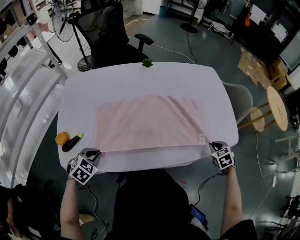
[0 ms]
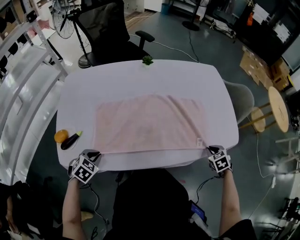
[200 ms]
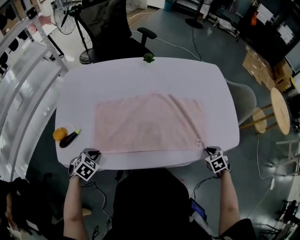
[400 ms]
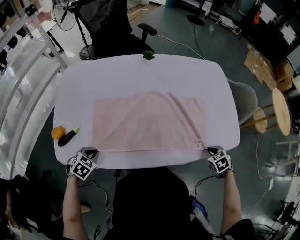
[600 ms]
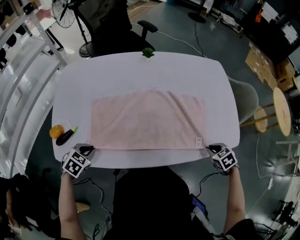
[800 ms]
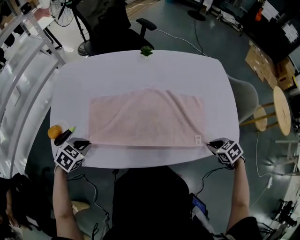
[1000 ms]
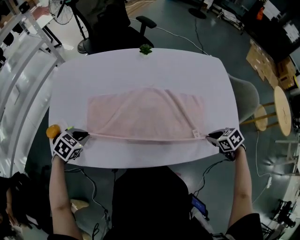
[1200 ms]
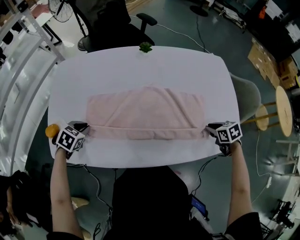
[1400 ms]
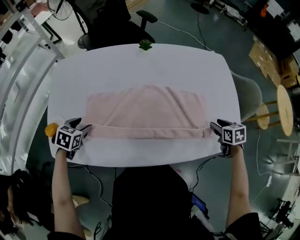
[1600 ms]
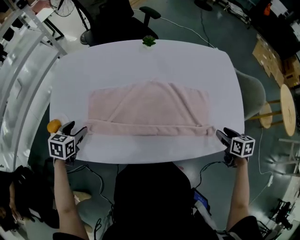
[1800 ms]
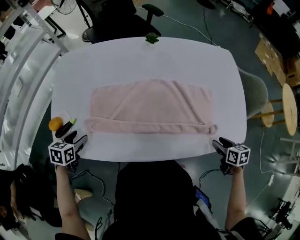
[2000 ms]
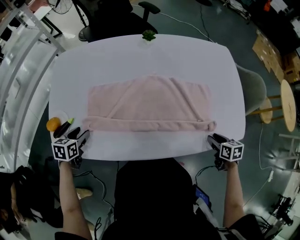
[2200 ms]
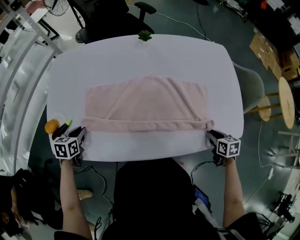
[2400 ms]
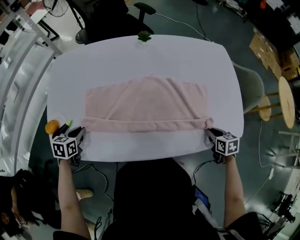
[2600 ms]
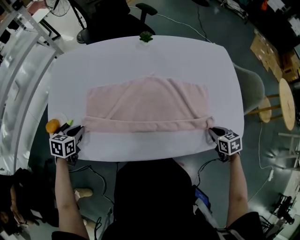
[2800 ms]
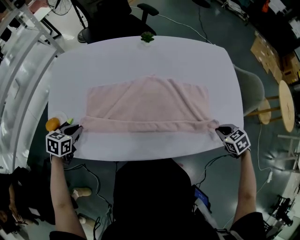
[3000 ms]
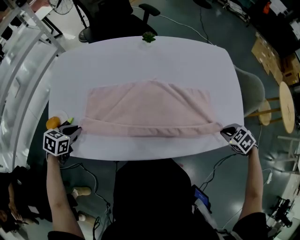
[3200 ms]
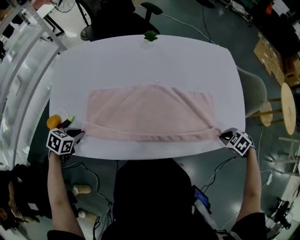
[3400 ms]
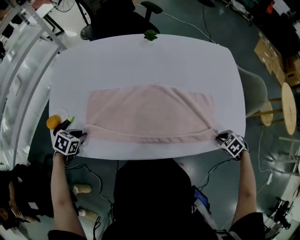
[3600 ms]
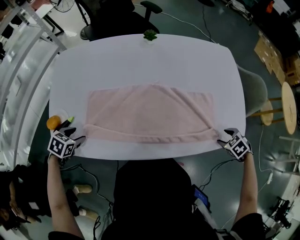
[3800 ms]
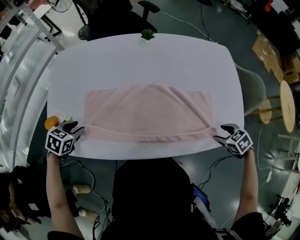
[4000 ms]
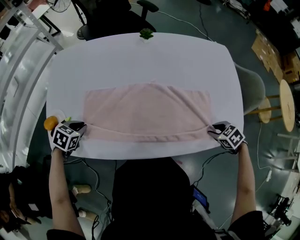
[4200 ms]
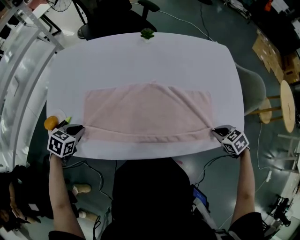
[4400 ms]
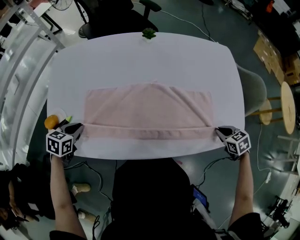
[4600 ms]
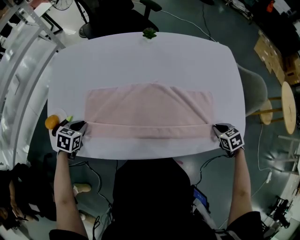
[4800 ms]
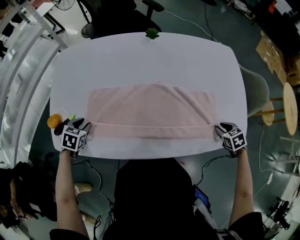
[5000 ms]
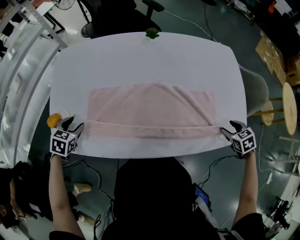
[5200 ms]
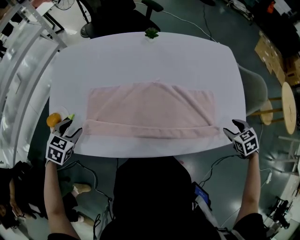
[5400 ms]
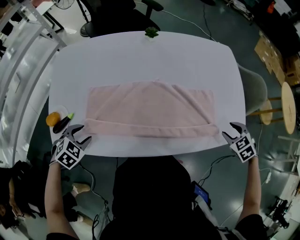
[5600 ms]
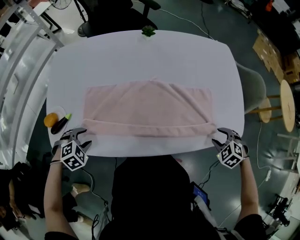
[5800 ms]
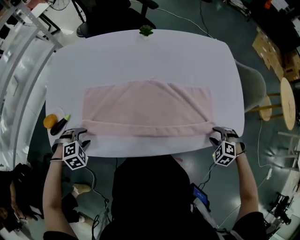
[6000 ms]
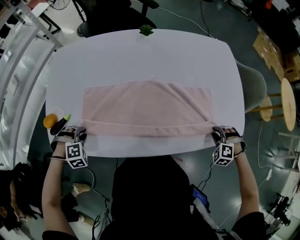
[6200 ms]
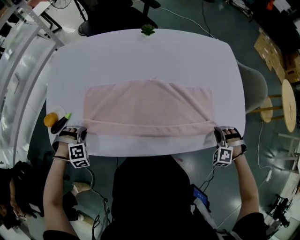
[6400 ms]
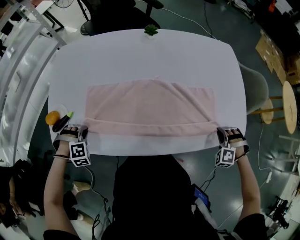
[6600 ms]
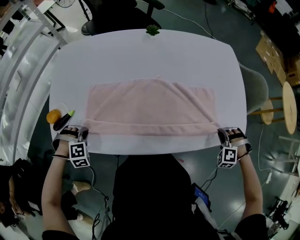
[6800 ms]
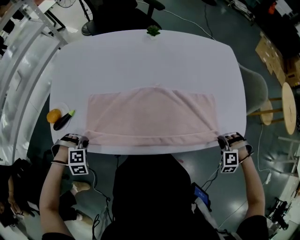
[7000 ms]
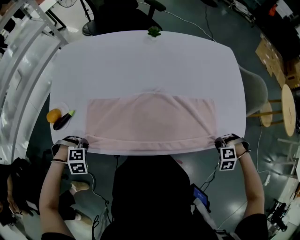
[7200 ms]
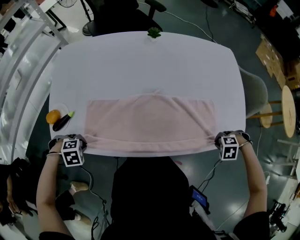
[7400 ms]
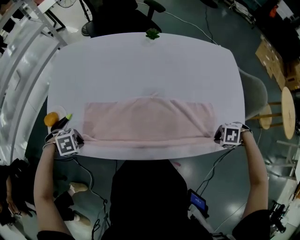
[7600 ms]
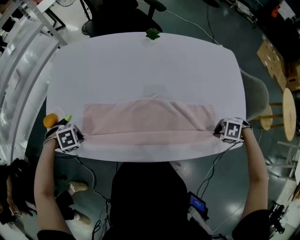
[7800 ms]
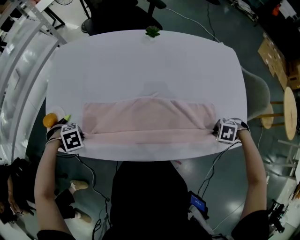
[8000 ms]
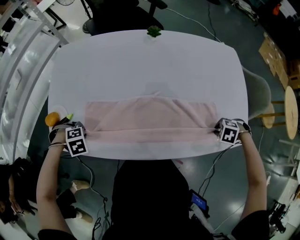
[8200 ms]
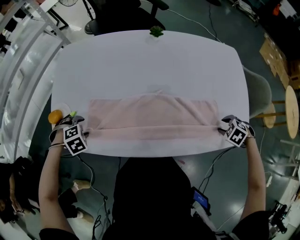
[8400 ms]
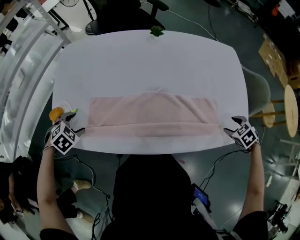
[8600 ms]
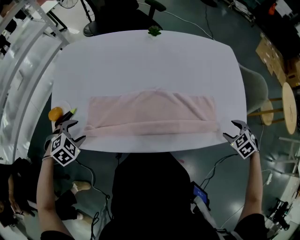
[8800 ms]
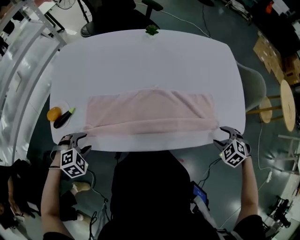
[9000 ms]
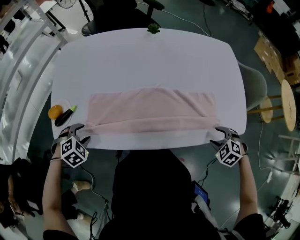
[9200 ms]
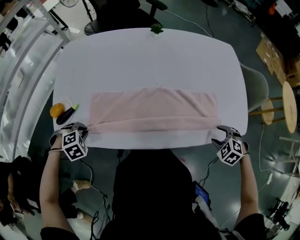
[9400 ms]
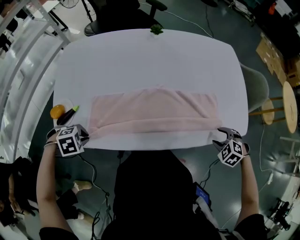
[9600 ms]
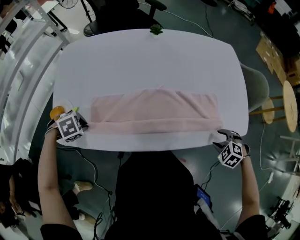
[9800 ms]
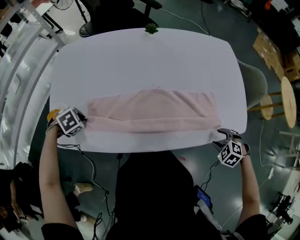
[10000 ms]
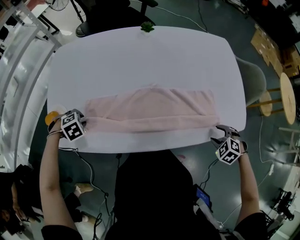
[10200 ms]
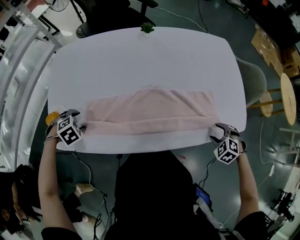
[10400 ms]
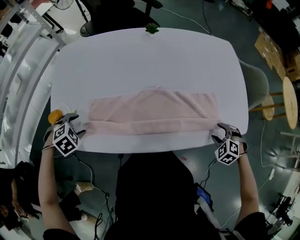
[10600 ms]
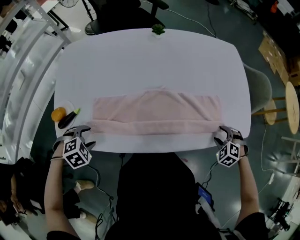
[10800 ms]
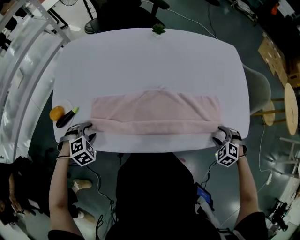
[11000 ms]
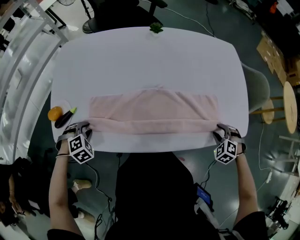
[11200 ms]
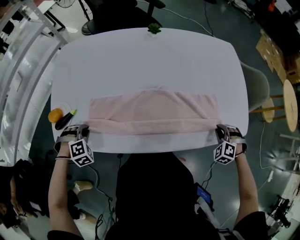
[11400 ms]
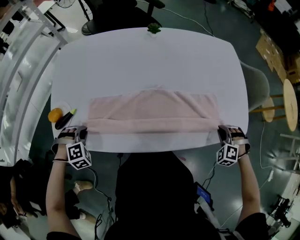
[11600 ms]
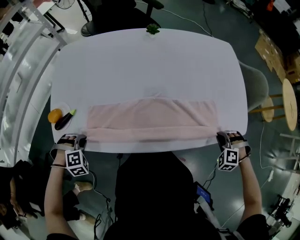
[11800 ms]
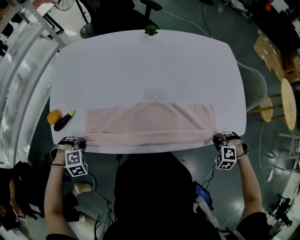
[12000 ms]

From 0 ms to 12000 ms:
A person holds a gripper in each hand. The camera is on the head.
From 0 ms to 1600 ms: The right gripper changes place by some 10 cm, and changes its angle by about 20 degrees; the left gripper changes place by some 10 cm, rotates some 30 degrees, and opens.
From 1600 ms to 3000 ms: The right gripper goes approximately 5 cm backward, and changes its angle by approximately 30 degrees. Meanwhile the left gripper closes up.
From 3000 ms to 4400 ms: The right gripper opens, then closes once more. The left gripper opens and closes again.
From 4400 ms to 6000 ms: The left gripper heads backward, covering roughly 5 cm, rotates around the line of its fingers by roughly 50 degrees, clockwise from behind, and opens up. The right gripper turns by roughly 40 degrees, and opens its fingers.
From 6000 ms to 7600 ms: The left gripper rotates about 30 degrees, and closes its fingers. The right gripper changes its angle by some 40 degrees, and closes.
From 7600 ms to 9000 ms: The left gripper turns by about 30 degrees, and opens its fingers, while the right gripper turns by approximately 40 degrees, and opens up.
From 9000 ms to 10400 ms: The left gripper ends up about 10 cm from where it was, and closes, then reopens.
From 10400 ms to 12000 ms: The right gripper turns by roughly 20 degrees, and closes; the left gripper changes place by approximately 10 cm, and closes up.

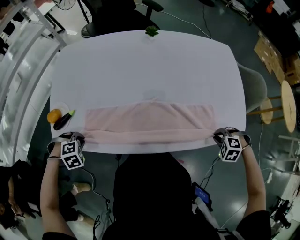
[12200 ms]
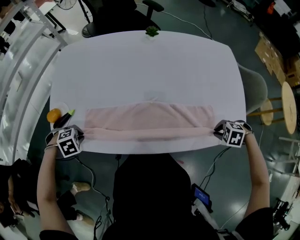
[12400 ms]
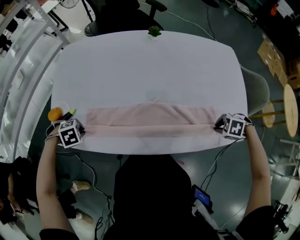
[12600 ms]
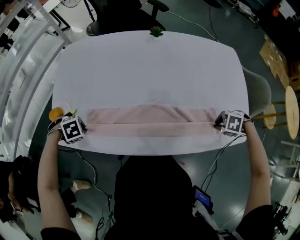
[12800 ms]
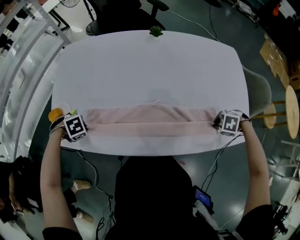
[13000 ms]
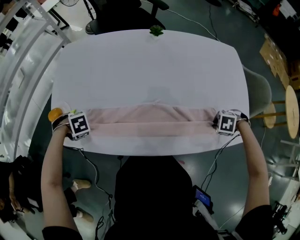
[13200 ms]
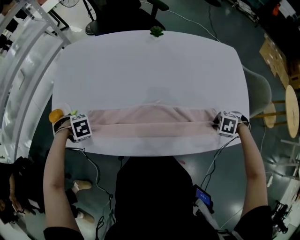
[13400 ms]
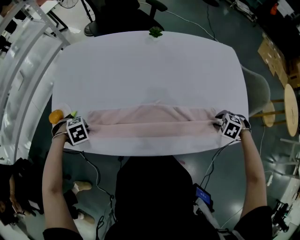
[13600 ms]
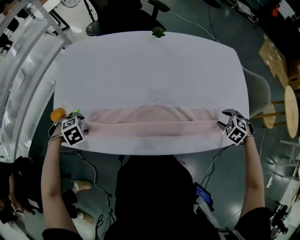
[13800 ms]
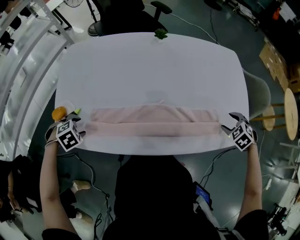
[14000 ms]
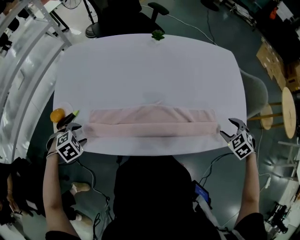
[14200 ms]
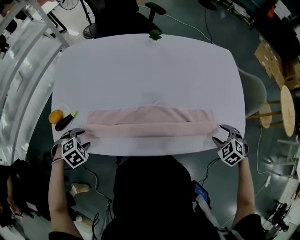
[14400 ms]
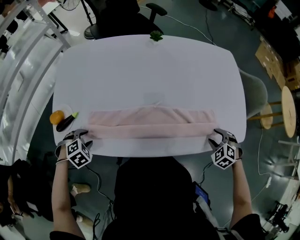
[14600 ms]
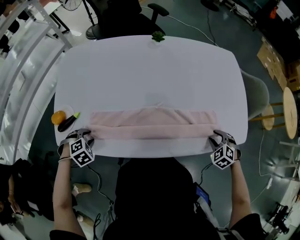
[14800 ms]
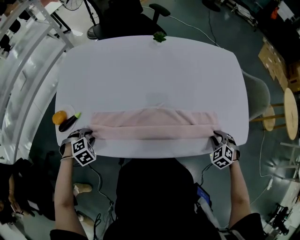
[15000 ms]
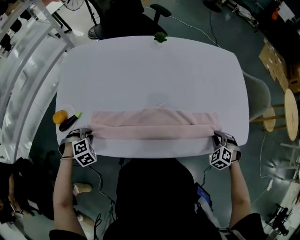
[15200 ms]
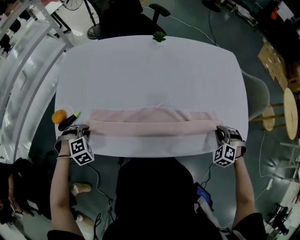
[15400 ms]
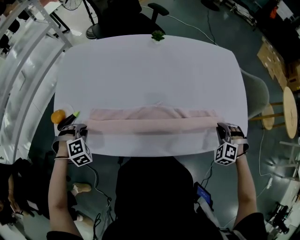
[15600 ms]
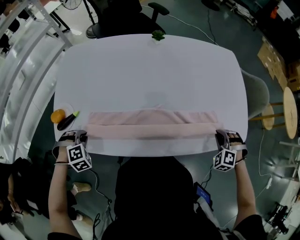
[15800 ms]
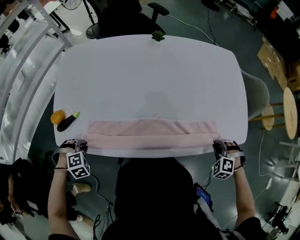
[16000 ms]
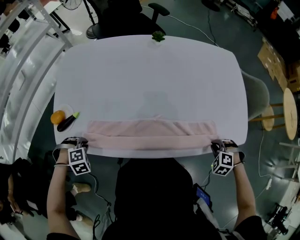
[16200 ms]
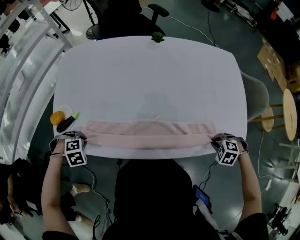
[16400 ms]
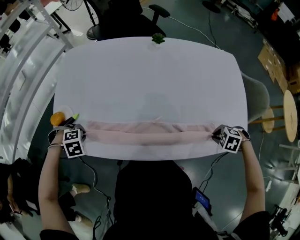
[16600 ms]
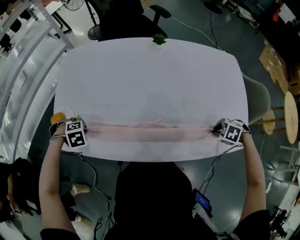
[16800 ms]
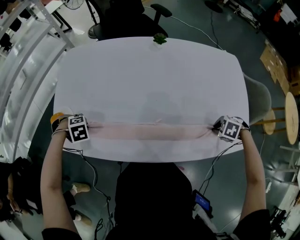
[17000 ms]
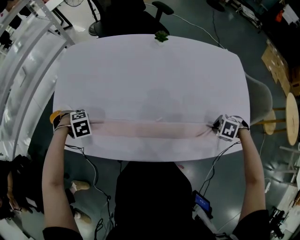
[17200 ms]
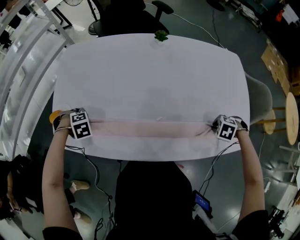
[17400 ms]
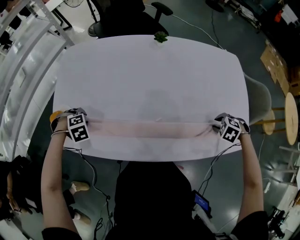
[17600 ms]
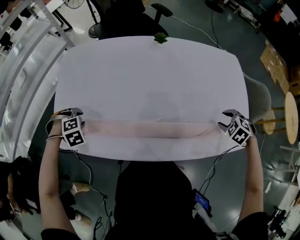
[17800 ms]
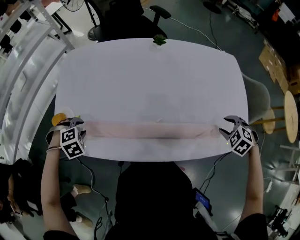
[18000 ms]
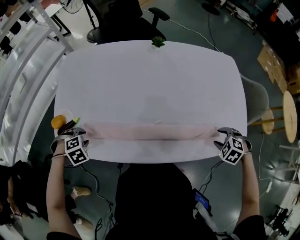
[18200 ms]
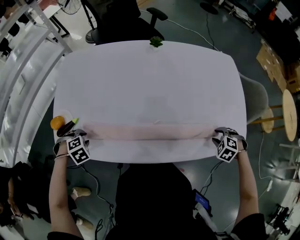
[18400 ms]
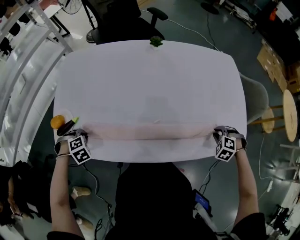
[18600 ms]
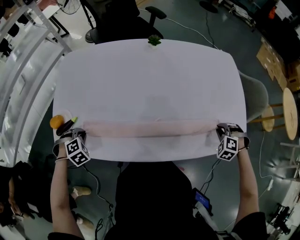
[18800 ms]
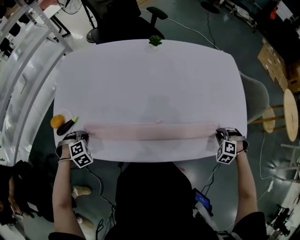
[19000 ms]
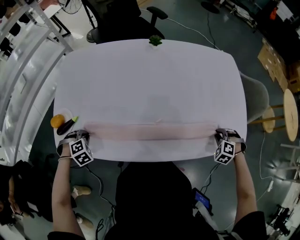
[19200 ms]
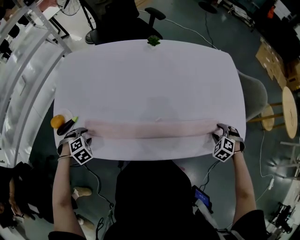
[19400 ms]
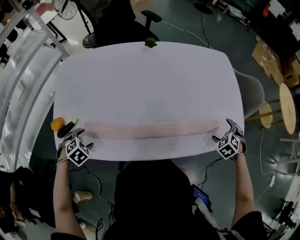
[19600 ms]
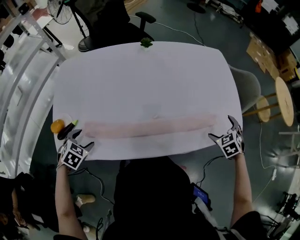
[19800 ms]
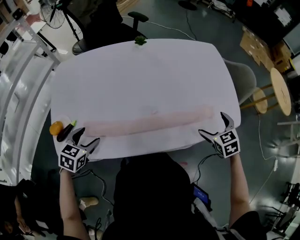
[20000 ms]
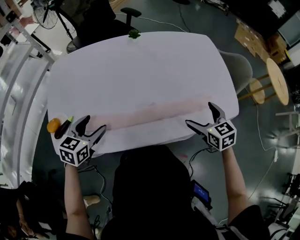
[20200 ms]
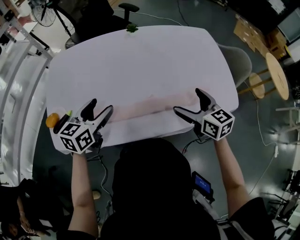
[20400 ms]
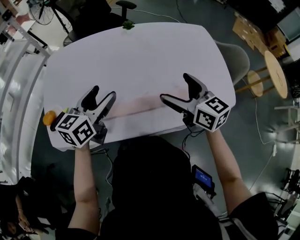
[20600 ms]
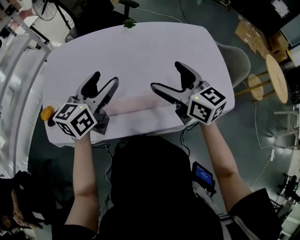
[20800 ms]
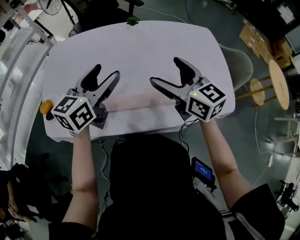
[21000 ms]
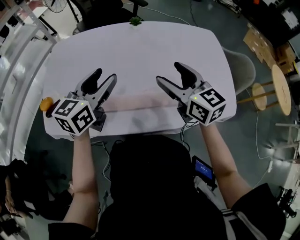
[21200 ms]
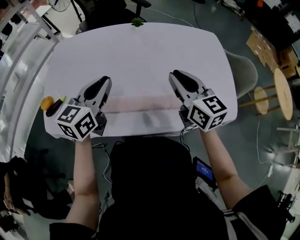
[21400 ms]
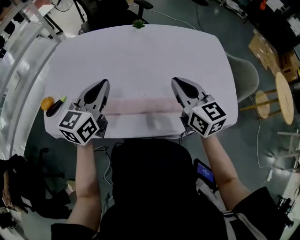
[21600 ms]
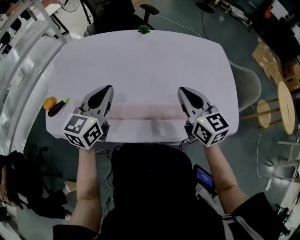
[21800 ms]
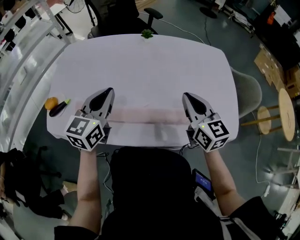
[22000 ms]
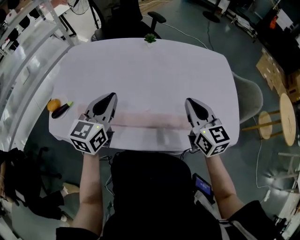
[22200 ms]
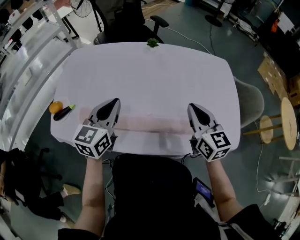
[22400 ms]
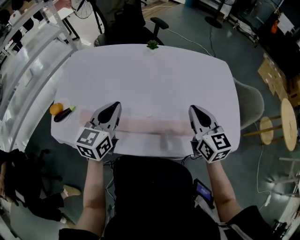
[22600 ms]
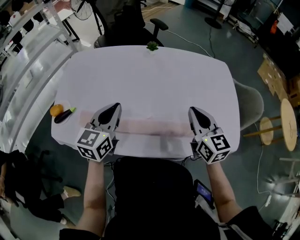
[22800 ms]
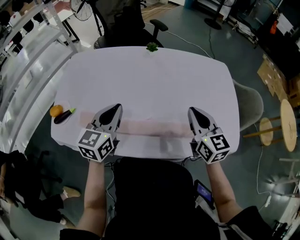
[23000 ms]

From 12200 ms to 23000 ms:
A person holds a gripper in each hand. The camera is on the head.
From 12200 ms to 13800 ms: The right gripper moves about 10 cm. Meanwhile the left gripper shifts by about 10 cm, and opens.
From 13800 ms to 15200 ms: The right gripper goes upward and returns, some 5 cm each way. The left gripper closes.
From 15200 ms to 16800 ms: The right gripper turns by approximately 40 degrees. The left gripper rotates approximately 20 degrees.
From 16800 ms to 18400 ms: The right gripper moves some 5 cm upward and comes back, and changes its angle by about 20 degrees.
From 18400 ms to 20000 ms: Both grippers travel together upward, some 10 cm. The left gripper points its fingers about 40 degrees further upward, and opens, while the right gripper twists about 40 degrees clockwise, seen from behind, and opens its fingers.
From 20000 ms to 21400 ms: The right gripper goes some 20 cm to the left, upward and forward, tilts its fingers approximately 40 degrees upward, and closes its fingers. The left gripper is displaced to the right, upward and forward by approximately 25 cm, angles its fingers upward, by roughly 40 degrees, and closes.
From 21400 ms to 23000 ms: The right gripper moves to the right, approximately 5 cm.

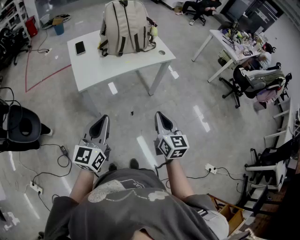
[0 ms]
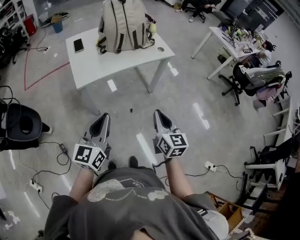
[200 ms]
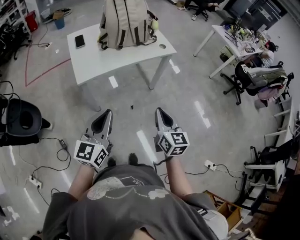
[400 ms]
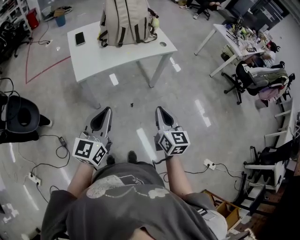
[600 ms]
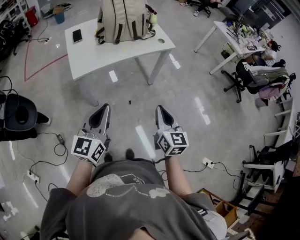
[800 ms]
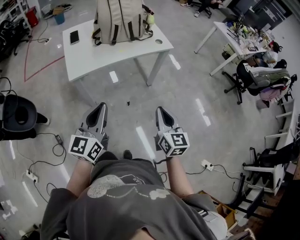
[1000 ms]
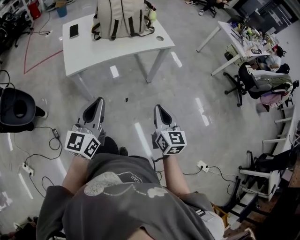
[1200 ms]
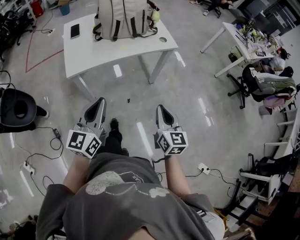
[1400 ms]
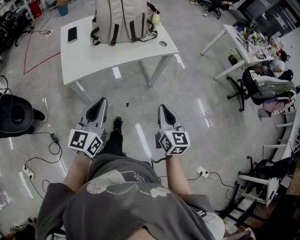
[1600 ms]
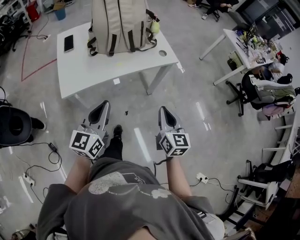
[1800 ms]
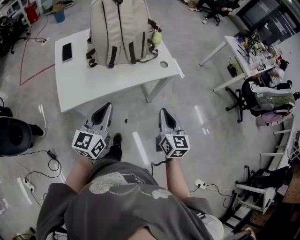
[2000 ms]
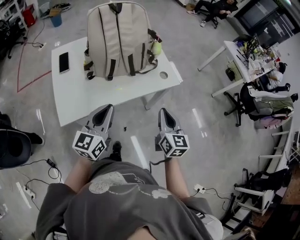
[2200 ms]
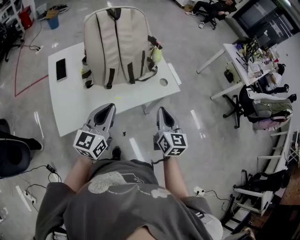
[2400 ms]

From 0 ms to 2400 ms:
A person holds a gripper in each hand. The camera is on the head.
From 0 ms to 1200 ms: The grippers both shift to the right by about 10 cm.
From 1200 ms to 2400 ms: The grippers both shift forward by some 35 cm.
